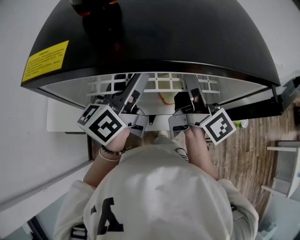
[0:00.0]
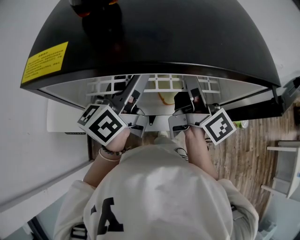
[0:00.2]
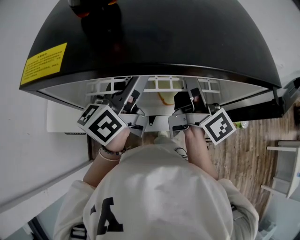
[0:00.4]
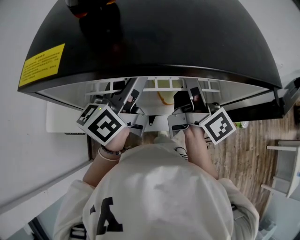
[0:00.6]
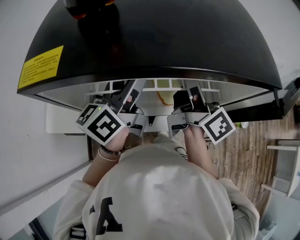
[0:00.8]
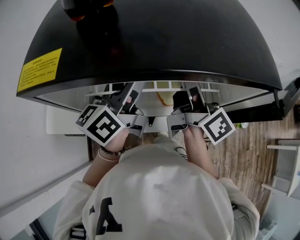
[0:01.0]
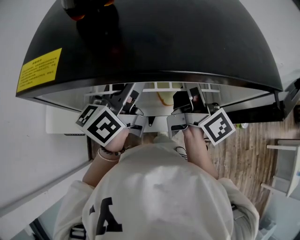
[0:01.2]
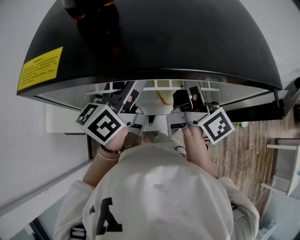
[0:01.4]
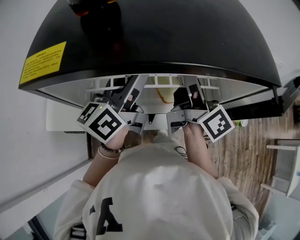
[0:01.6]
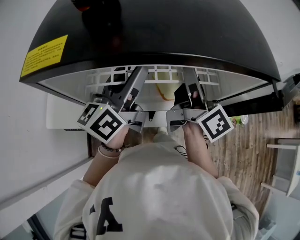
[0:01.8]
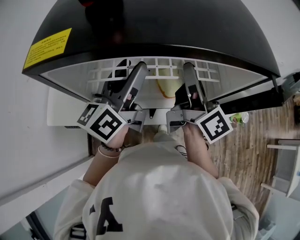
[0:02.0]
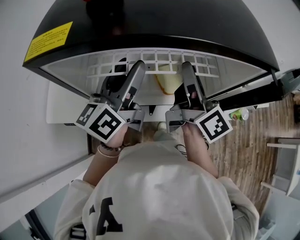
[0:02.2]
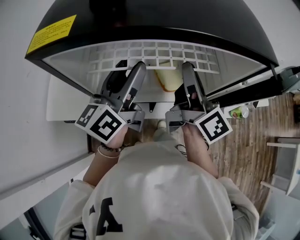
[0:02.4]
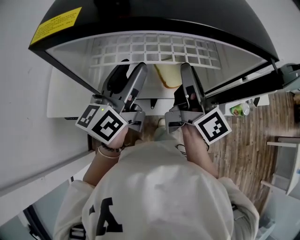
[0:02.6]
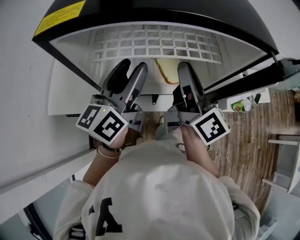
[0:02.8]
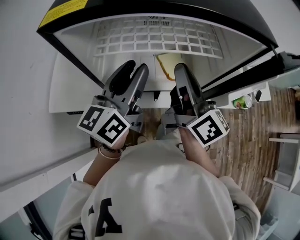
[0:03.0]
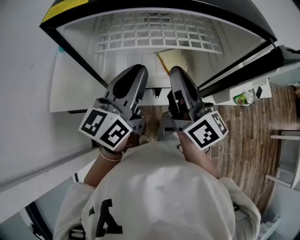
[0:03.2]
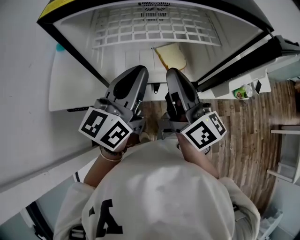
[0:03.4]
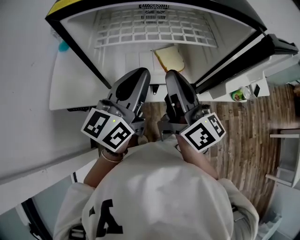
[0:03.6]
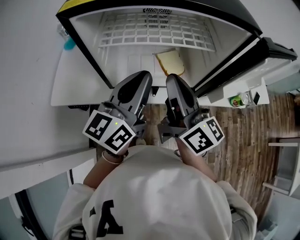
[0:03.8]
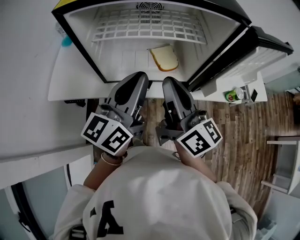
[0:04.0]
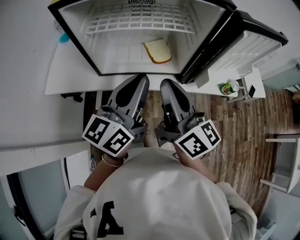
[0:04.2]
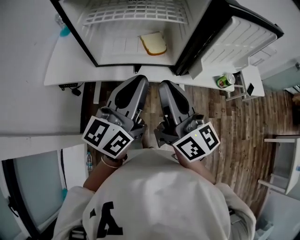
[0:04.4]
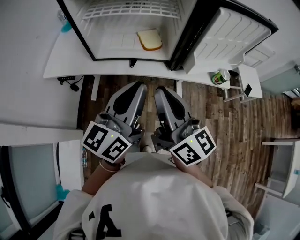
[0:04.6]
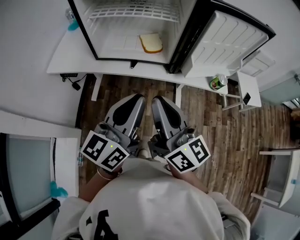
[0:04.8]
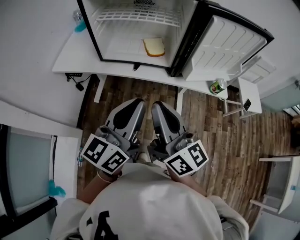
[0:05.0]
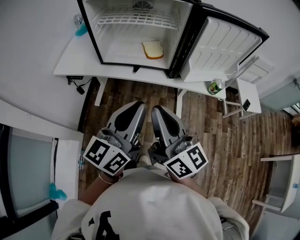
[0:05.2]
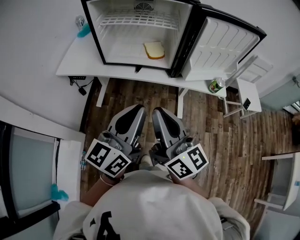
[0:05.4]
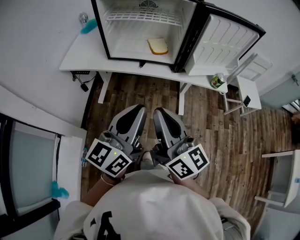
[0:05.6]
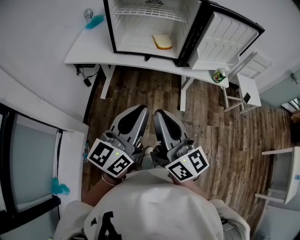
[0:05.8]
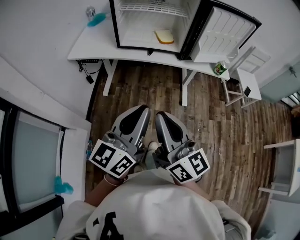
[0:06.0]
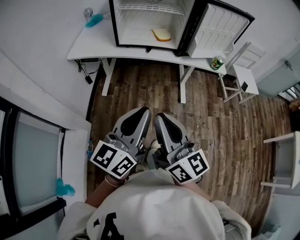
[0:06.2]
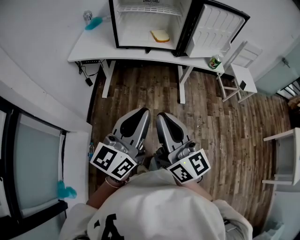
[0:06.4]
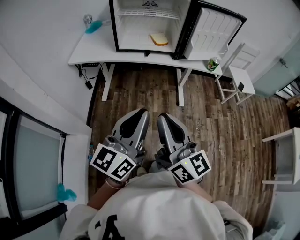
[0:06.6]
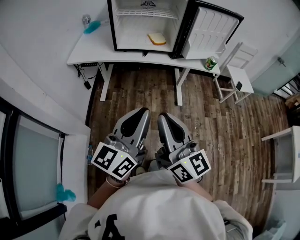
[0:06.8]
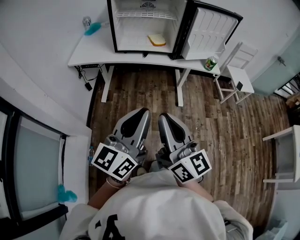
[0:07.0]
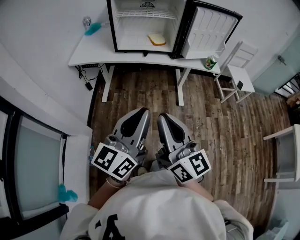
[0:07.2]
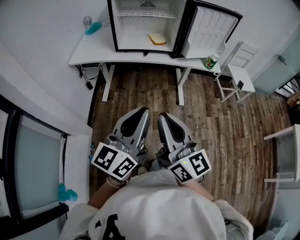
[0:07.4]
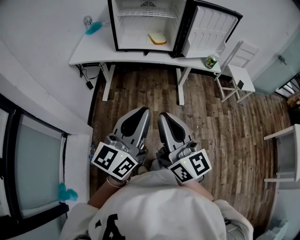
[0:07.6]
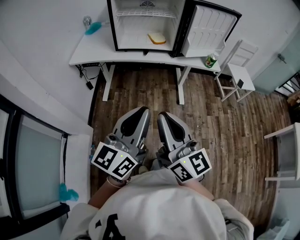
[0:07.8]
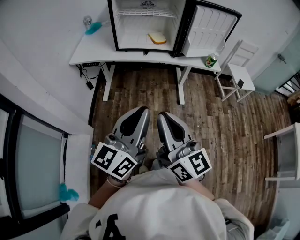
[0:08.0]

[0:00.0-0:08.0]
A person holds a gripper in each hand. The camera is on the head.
0:00.0 to 0:01.6: Both grippers stay about where they are.
0:01.6 to 0:03.2: Both grippers move backward, some 10 cm. The left gripper closes. The right gripper closes.
0:03.2 to 0:04.8: Both grippers travel together backward and to the right, some 30 cm.
0:04.8 to 0:06.4: Both grippers move backward, about 25 cm.
0:06.4 to 0:08.0: The grippers stay close to where they were, moving slightly.

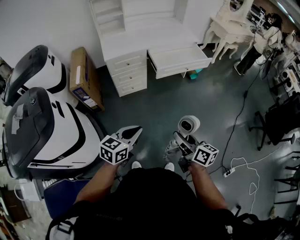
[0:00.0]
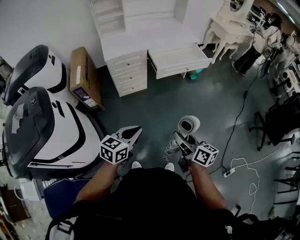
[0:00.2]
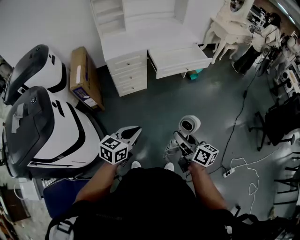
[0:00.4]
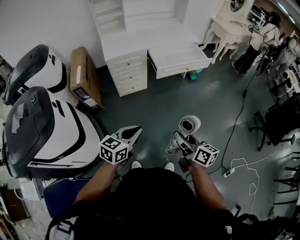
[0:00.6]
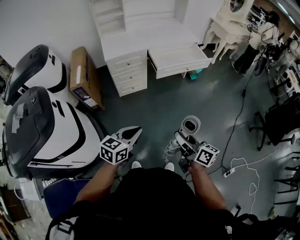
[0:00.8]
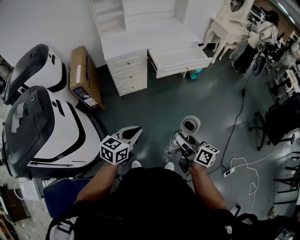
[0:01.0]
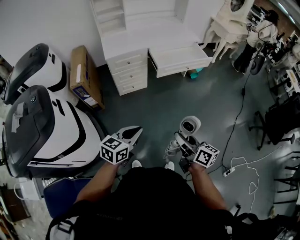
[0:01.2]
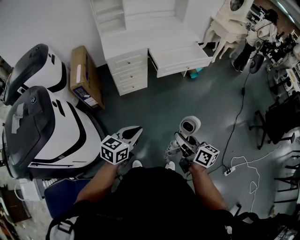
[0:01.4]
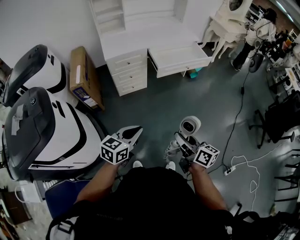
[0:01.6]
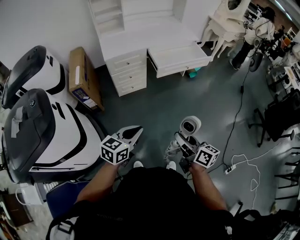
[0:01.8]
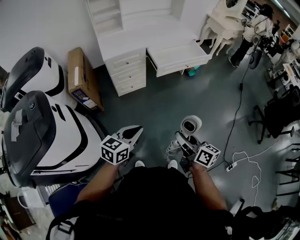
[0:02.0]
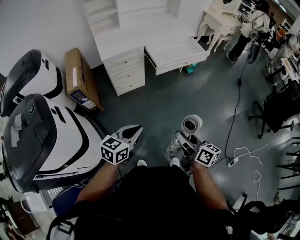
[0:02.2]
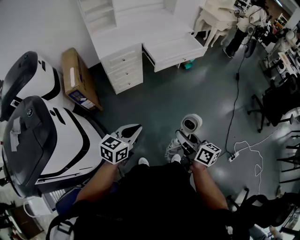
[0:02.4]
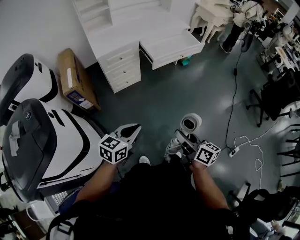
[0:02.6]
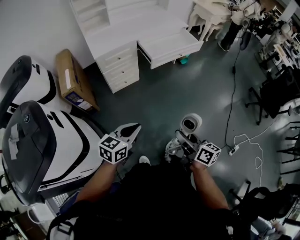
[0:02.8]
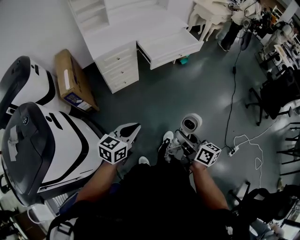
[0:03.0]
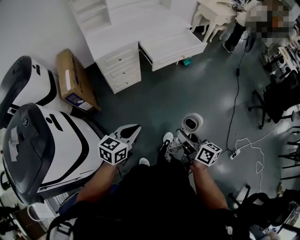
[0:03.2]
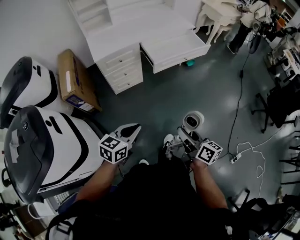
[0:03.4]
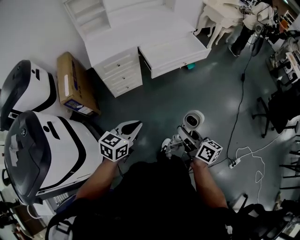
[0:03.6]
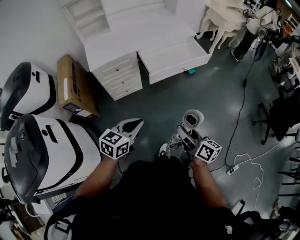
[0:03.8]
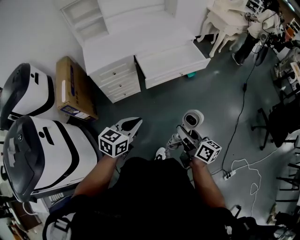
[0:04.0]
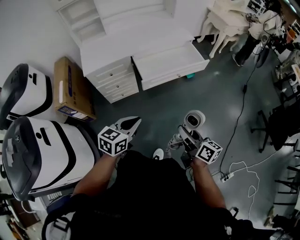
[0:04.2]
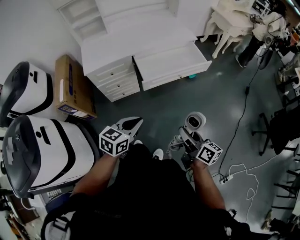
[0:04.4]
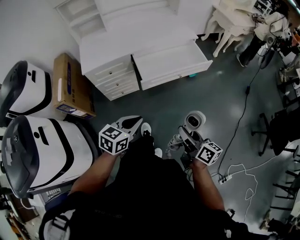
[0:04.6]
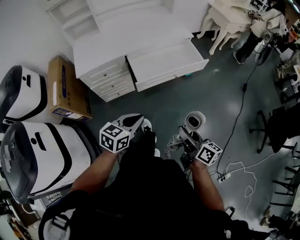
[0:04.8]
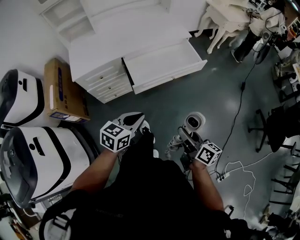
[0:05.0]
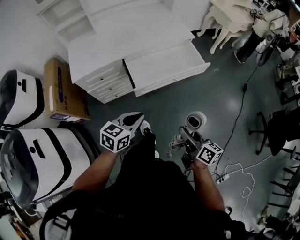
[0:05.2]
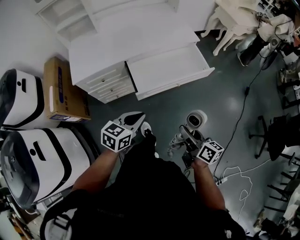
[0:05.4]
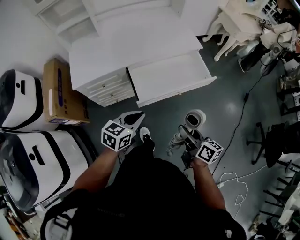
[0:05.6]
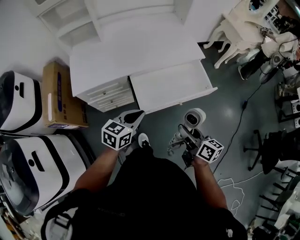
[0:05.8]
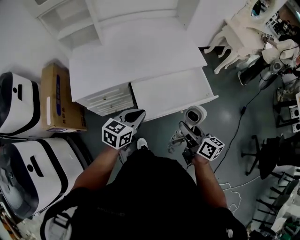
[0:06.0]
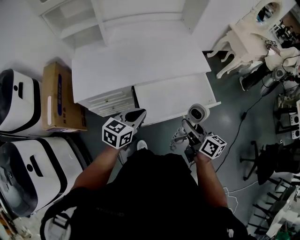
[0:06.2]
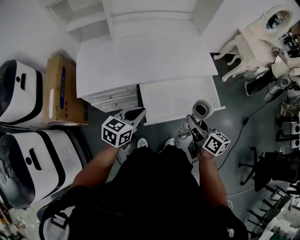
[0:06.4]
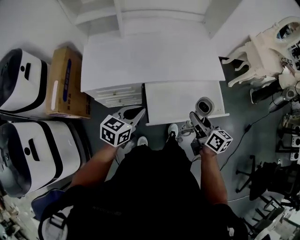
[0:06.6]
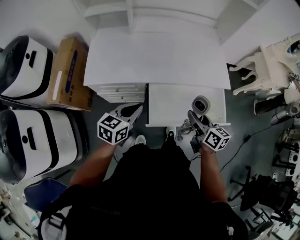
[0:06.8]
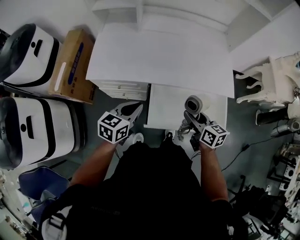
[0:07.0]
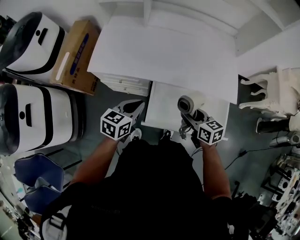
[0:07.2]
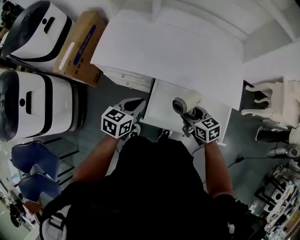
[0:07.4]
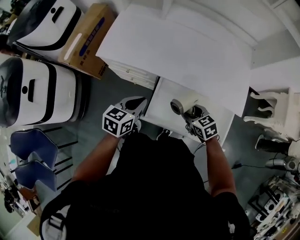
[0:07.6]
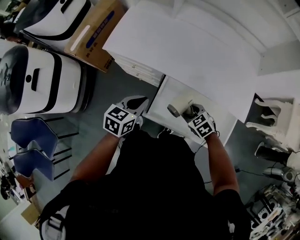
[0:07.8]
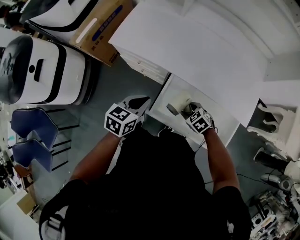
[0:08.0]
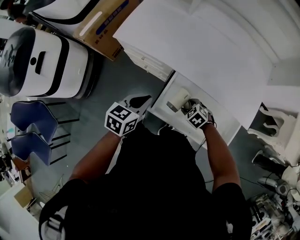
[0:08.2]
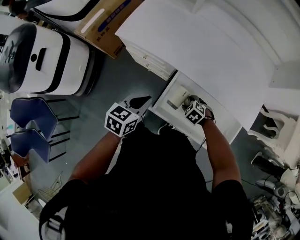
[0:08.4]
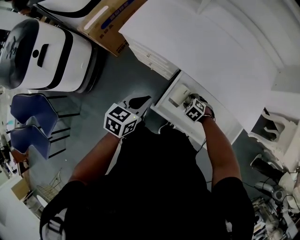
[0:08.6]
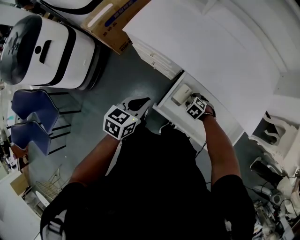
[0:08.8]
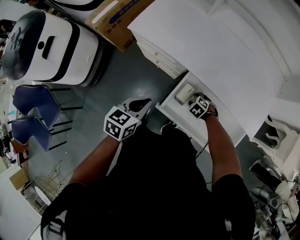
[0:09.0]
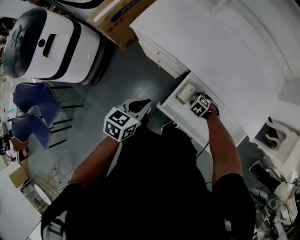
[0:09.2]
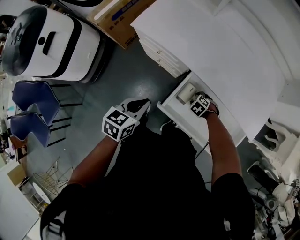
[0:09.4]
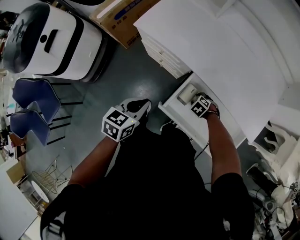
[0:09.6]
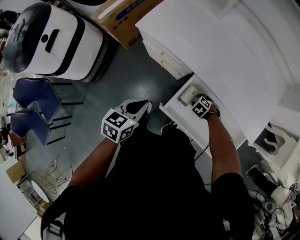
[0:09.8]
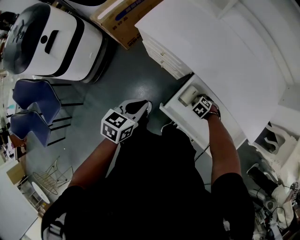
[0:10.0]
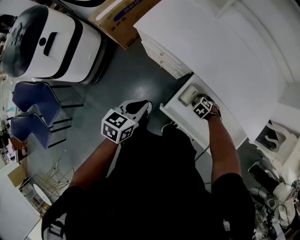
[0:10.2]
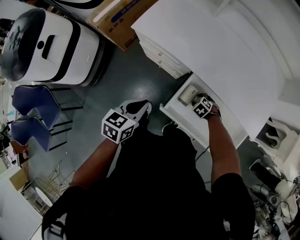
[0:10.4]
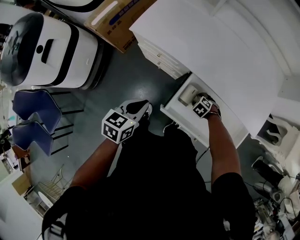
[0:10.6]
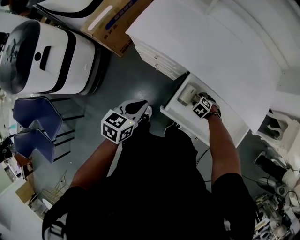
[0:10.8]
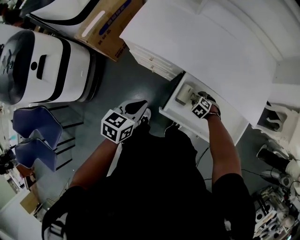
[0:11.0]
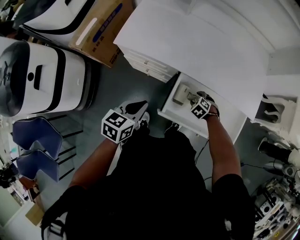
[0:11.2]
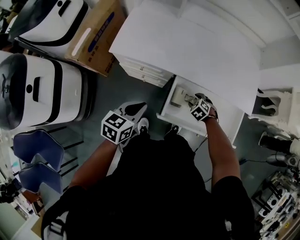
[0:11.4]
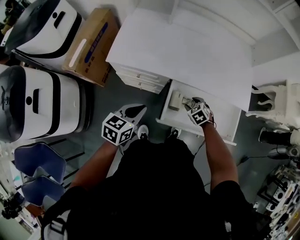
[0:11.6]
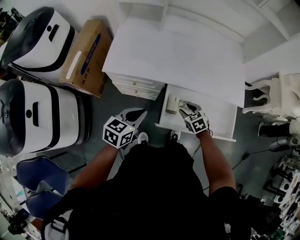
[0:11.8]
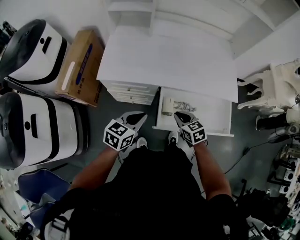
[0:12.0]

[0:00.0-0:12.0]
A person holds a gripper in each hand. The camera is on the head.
0:00.0 to 0:01.6: The grippers make only small movements.
0:01.6 to 0:03.0: The left gripper moves about 5 cm.
0:03.0 to 0:04.4: The two grippers go roughly 30 cm forward and to the right.
0:04.4 to 0:06.0: The two grippers go about 30 cm forward.
0:06.0 to 0:07.6: The left gripper moves approximately 10 cm, and swivels roughly 40 degrees, while the right gripper shifts by about 25 cm, and tilts its fingers about 30 degrees downward.
0:07.6 to 0:09.0: The left gripper changes place by approximately 10 cm, while the right gripper moves downward, some 20 cm, and points its fingers roughly 30 degrees further downward.
0:09.0 to 0:10.4: The grippers stay close to where they were, moving slightly.
0:10.4 to 0:12.0: The right gripper travels upward by roughly 25 cm, angles its fingers upward, by roughly 40 degrees, and closes; the left gripper shifts by some 5 cm, and turns by some 40 degrees.

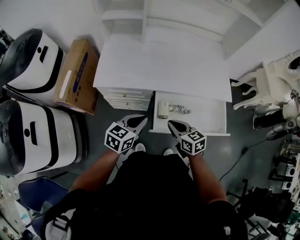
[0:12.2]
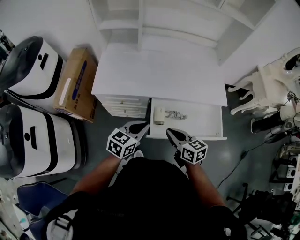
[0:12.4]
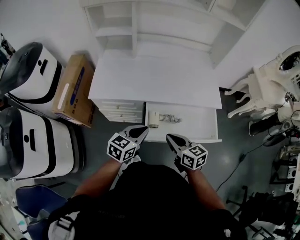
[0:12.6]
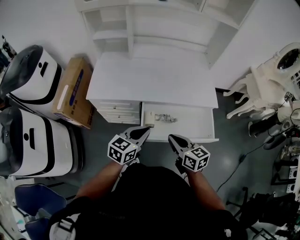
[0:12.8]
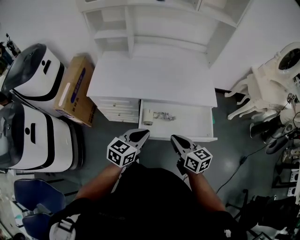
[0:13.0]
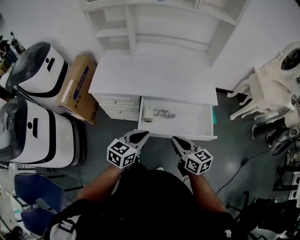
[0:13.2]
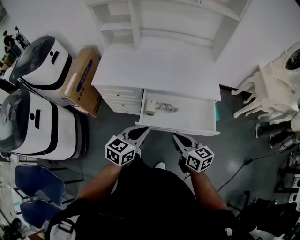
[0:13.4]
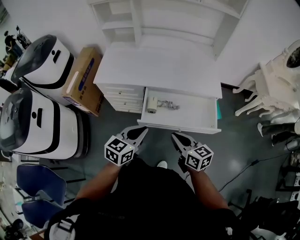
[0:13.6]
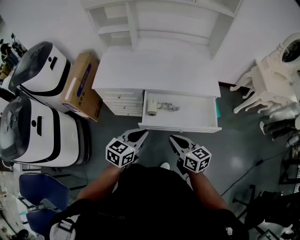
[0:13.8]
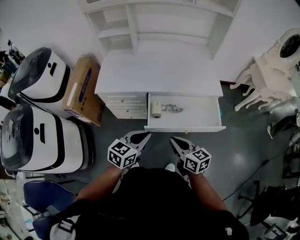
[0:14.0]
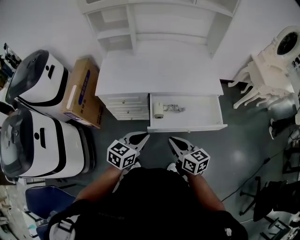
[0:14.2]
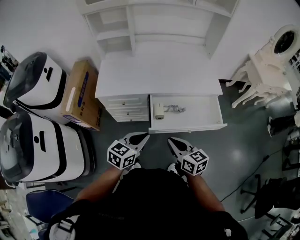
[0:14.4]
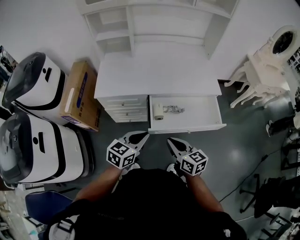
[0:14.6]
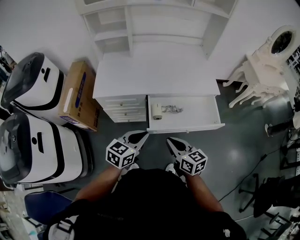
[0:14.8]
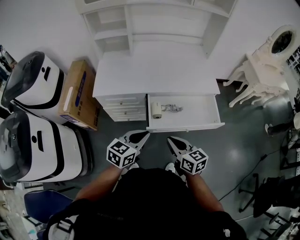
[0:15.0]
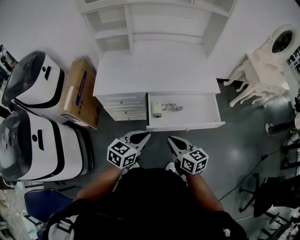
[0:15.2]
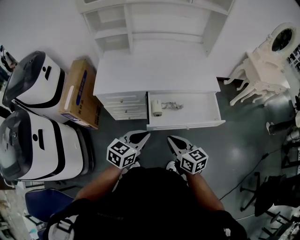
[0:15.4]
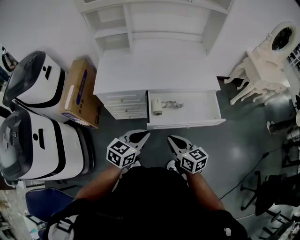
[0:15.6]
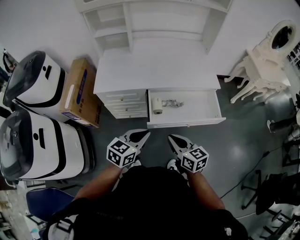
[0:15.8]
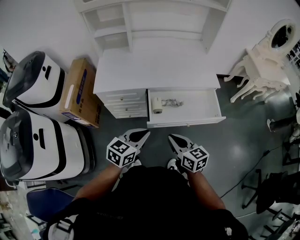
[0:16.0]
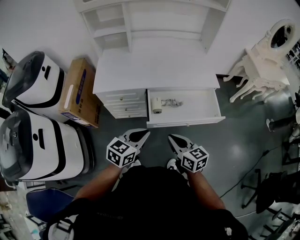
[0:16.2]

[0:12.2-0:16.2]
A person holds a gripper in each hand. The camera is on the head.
0:12.2 to 0:13.6: The grippers both shift backward, to the right and upward by roughly 20 cm.
0:13.6 to 0:14.8: The grippers both shift to the left by approximately 10 cm.
0:14.8 to 0:16.2: The grippers stay close to where they were, moving slightly.
